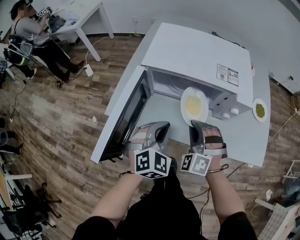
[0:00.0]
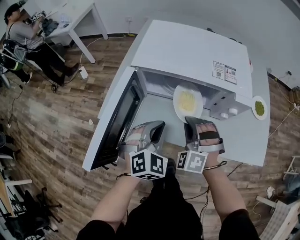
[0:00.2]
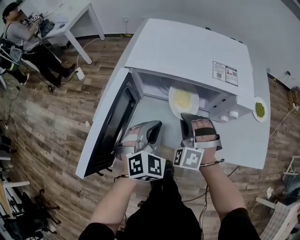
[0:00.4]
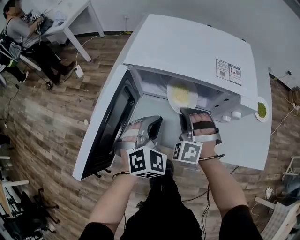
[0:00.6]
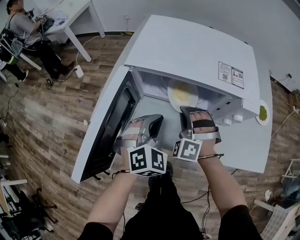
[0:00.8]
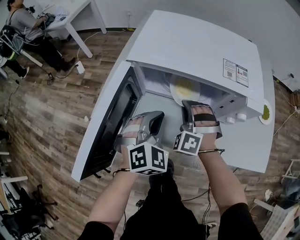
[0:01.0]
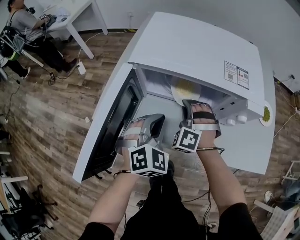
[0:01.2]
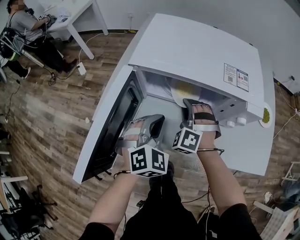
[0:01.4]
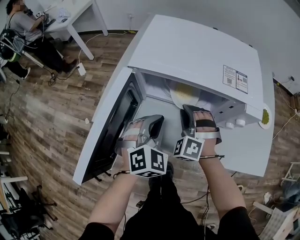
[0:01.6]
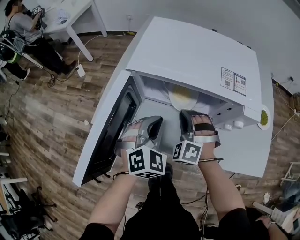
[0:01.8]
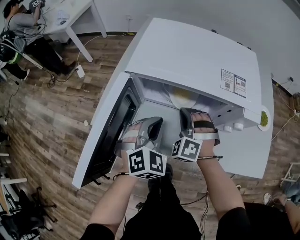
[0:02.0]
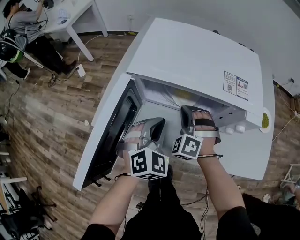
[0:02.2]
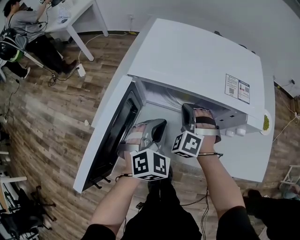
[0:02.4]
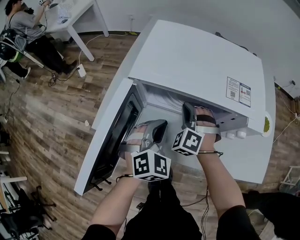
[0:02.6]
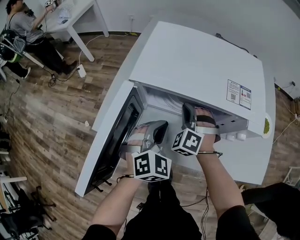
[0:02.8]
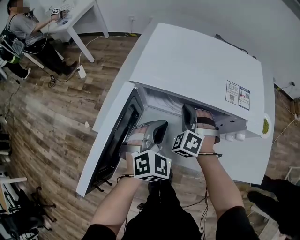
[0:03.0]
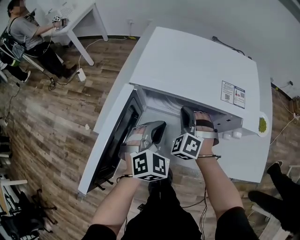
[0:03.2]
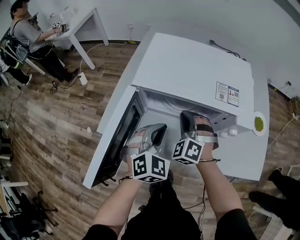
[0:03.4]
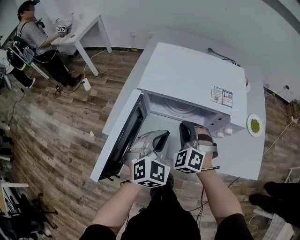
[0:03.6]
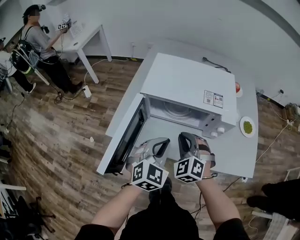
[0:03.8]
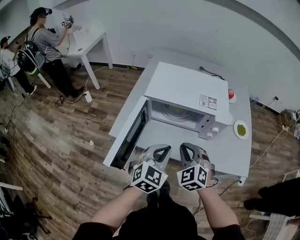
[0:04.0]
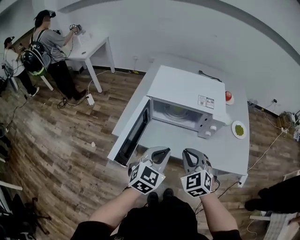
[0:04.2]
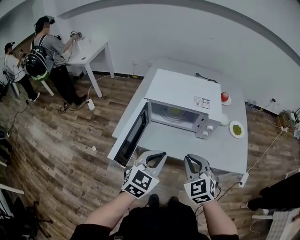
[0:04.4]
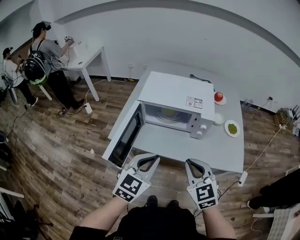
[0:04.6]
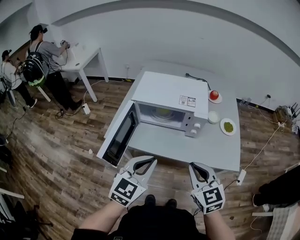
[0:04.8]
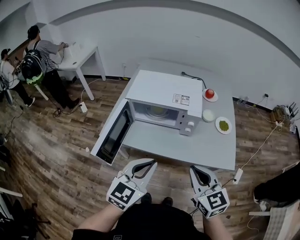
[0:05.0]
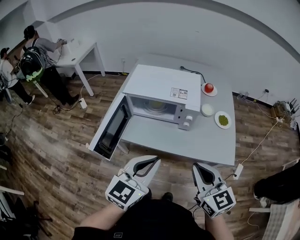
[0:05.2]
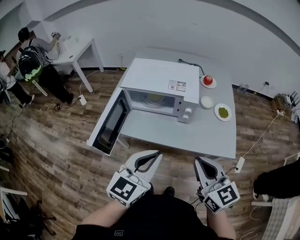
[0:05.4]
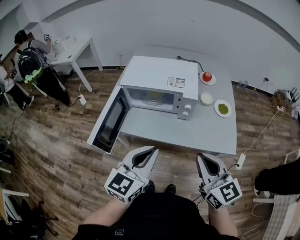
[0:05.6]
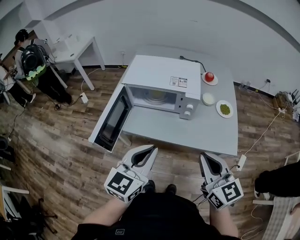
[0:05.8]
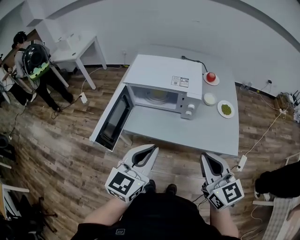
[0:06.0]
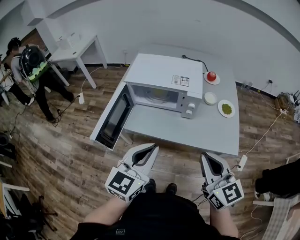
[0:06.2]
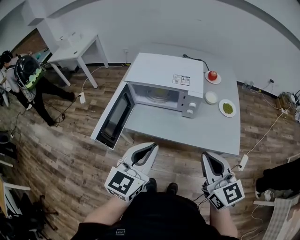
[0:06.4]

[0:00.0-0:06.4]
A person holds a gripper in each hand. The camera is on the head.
0:00.0 to 0:01.6: The left gripper goes approximately 5 cm forward, while the right gripper is displaced forward and downward by about 10 cm.
0:01.6 to 0:03.2: There are only small adjustments of the grippers.
0:03.2 to 0:04.8: The left gripper shifts approximately 30 cm backward and upward, and turns by roughly 30 degrees, while the right gripper moves backward, upward and to the right, roughly 40 cm, and rotates around the line of its fingers by some 50 degrees, clockwise from behind.
0:04.8 to 0:06.4: The right gripper shifts approximately 5 cm to the right. Meanwhile the left gripper moves approximately 5 cm.

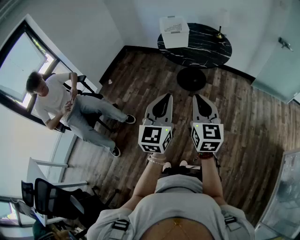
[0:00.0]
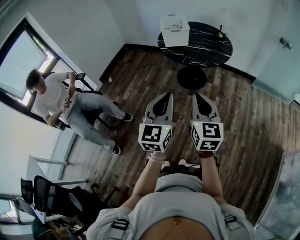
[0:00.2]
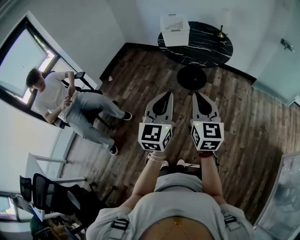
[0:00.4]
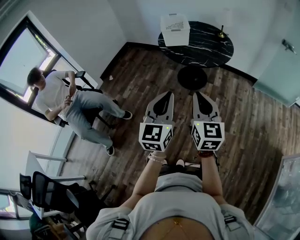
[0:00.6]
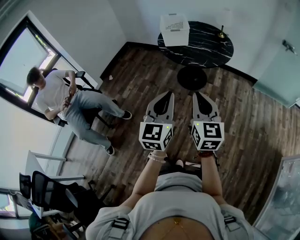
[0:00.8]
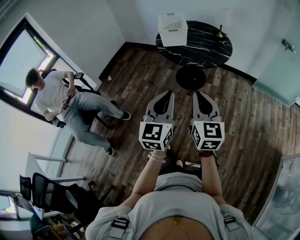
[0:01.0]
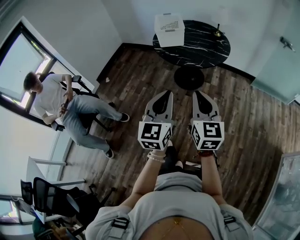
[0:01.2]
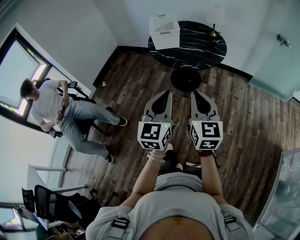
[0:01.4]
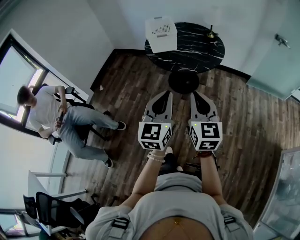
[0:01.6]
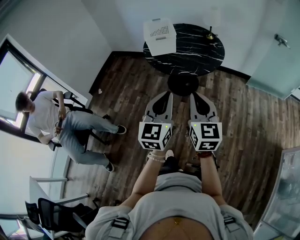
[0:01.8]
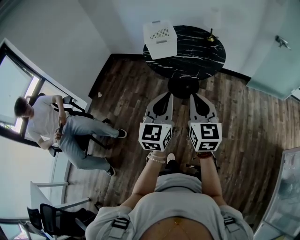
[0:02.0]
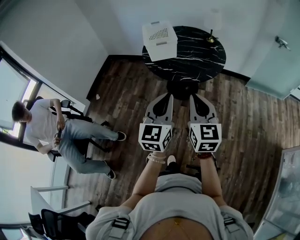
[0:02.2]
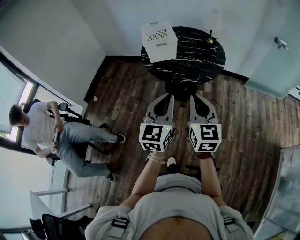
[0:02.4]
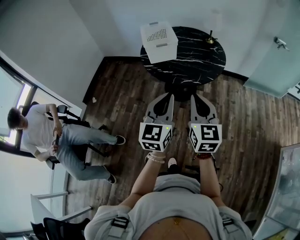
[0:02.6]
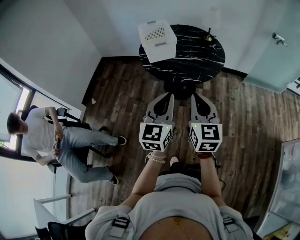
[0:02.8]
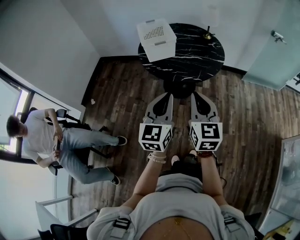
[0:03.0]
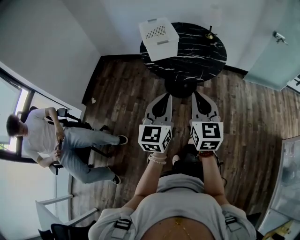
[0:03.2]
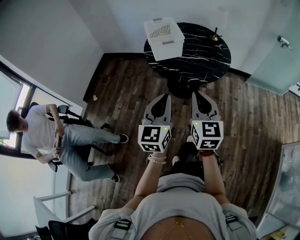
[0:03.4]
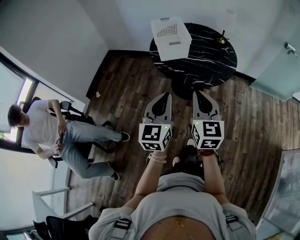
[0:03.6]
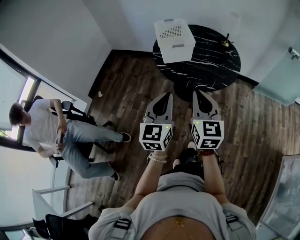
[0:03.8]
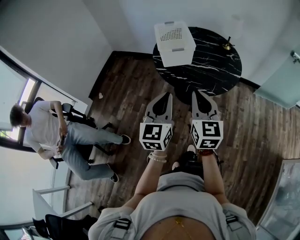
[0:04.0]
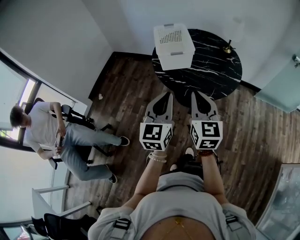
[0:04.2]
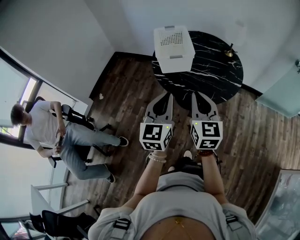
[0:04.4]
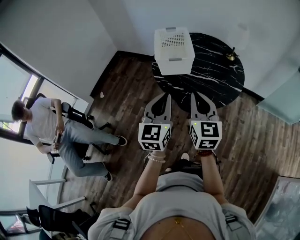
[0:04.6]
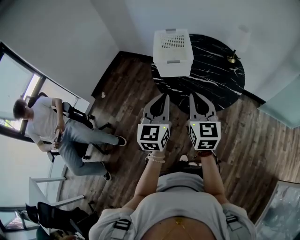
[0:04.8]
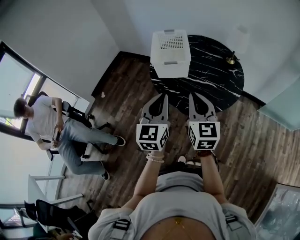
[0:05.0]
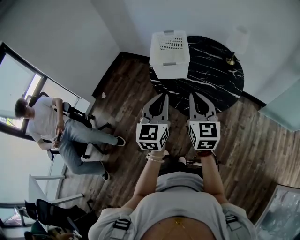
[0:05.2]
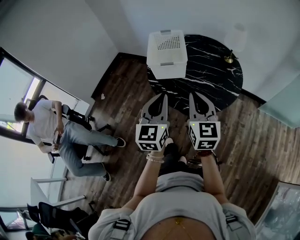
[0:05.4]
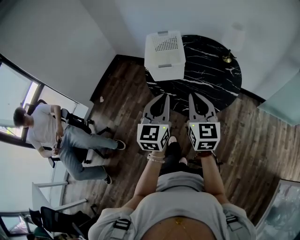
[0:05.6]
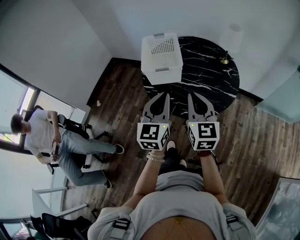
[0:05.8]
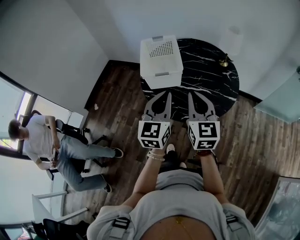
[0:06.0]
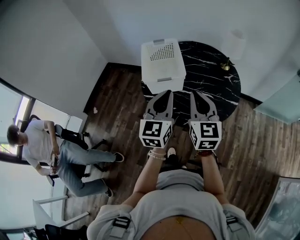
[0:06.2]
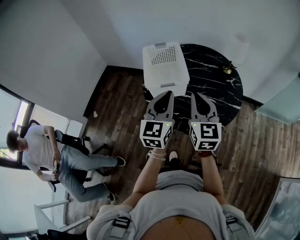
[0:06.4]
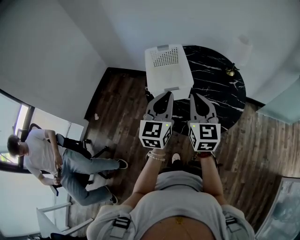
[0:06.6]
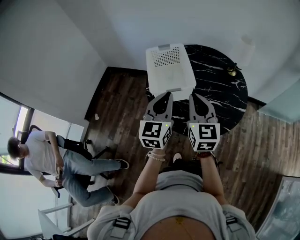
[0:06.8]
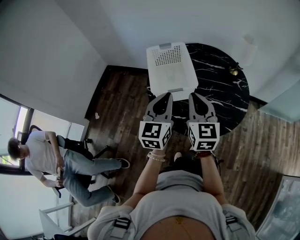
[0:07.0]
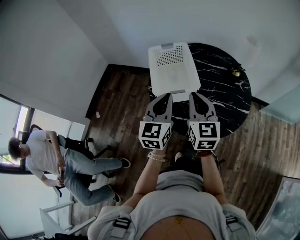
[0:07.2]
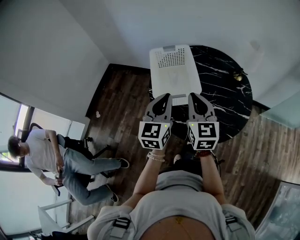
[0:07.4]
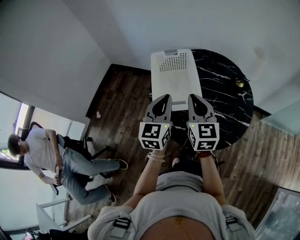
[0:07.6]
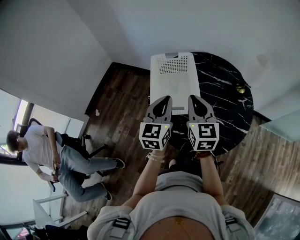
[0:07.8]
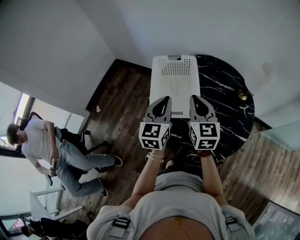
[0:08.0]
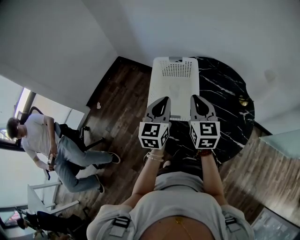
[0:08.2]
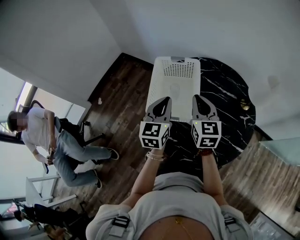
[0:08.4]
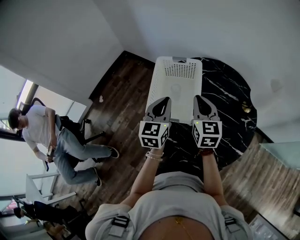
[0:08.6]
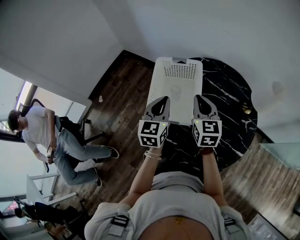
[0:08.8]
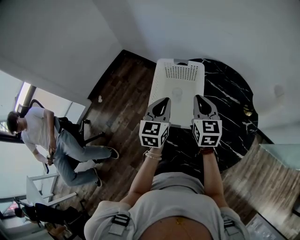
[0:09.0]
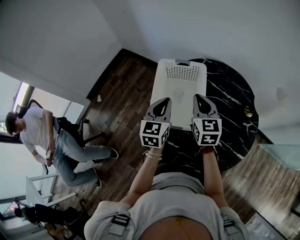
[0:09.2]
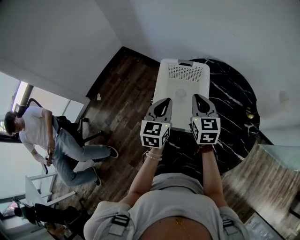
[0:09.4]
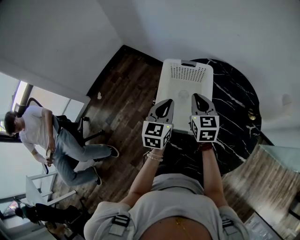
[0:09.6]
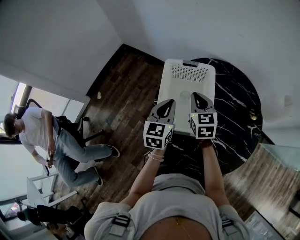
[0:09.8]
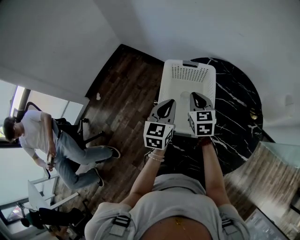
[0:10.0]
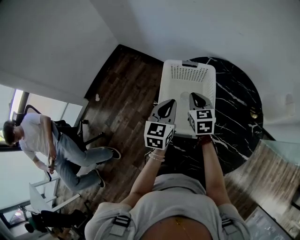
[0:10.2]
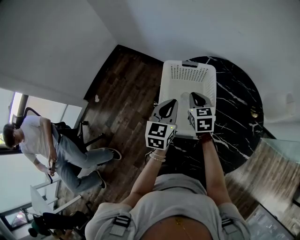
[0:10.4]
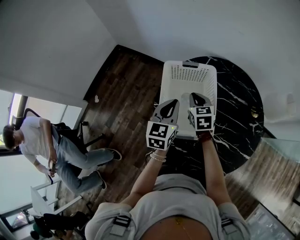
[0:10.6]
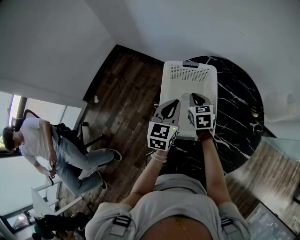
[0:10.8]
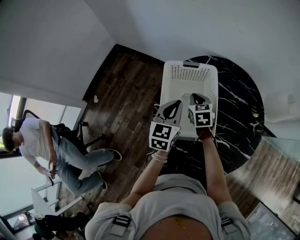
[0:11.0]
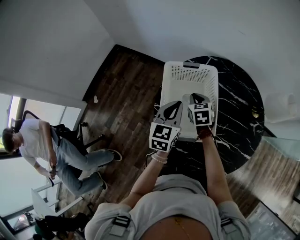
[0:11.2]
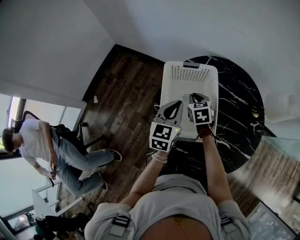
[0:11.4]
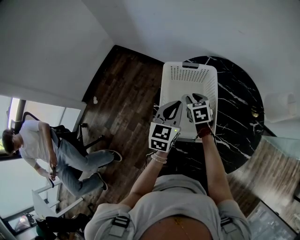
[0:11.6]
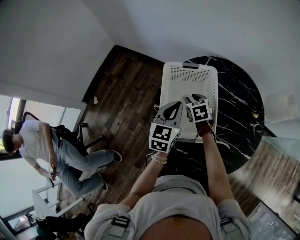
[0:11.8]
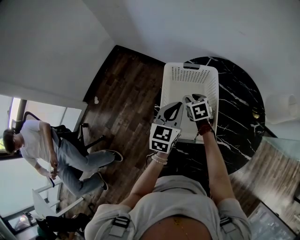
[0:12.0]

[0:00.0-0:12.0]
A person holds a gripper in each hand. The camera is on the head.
0:00.0 to 0:01.6: Both grippers travel together forward and to the right, roughly 15 cm.
0:01.6 to 0:03.0: Both grippers travel together forward and to the left, some 15 cm.
0:03.0 to 0:04.4: The two grippers go some 15 cm forward.
0:04.4 to 0:06.0: Both grippers travel together forward and to the right, approximately 15 cm.
0:06.0 to 0:07.6: The grippers both shift forward and to the left by some 20 cm.
0:07.6 to 0:09.0: The left gripper is displaced forward and downward by roughly 15 cm. Meanwhile the right gripper travels forward by roughly 15 cm.
0:09.0 to 0:10.4: The left gripper heads forward, covering roughly 5 cm. The right gripper goes about 15 cm downward, forward and to the left.
0:10.4 to 0:12.0: The right gripper is displaced downward by about 10 cm, and opens.

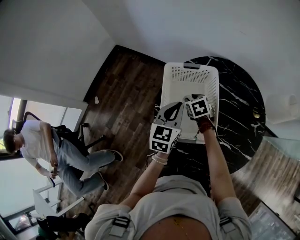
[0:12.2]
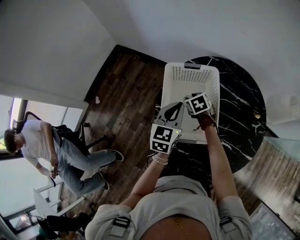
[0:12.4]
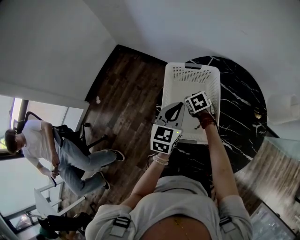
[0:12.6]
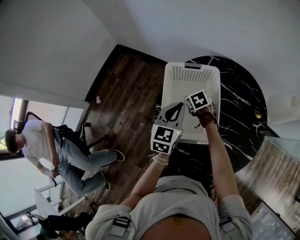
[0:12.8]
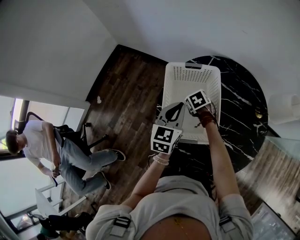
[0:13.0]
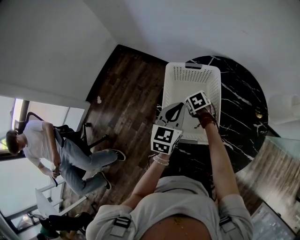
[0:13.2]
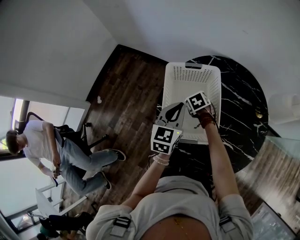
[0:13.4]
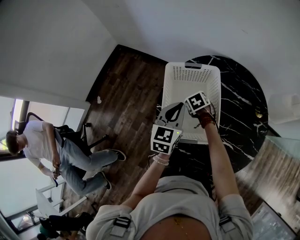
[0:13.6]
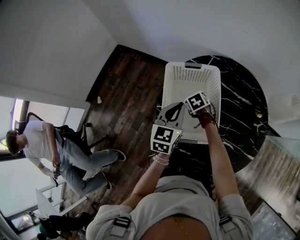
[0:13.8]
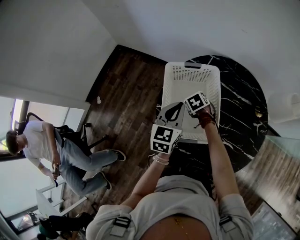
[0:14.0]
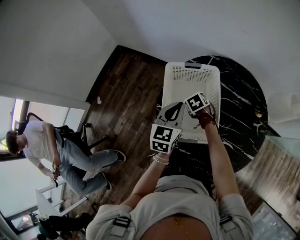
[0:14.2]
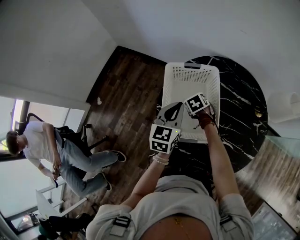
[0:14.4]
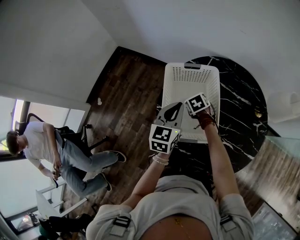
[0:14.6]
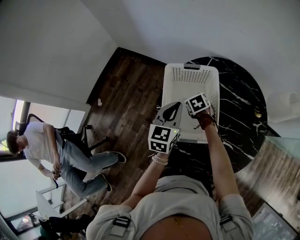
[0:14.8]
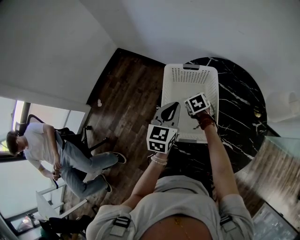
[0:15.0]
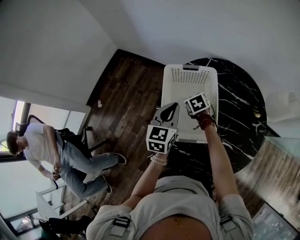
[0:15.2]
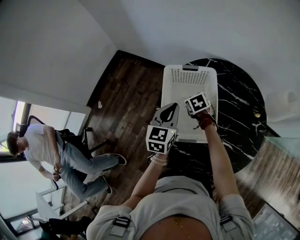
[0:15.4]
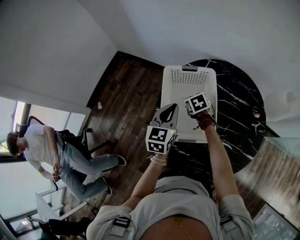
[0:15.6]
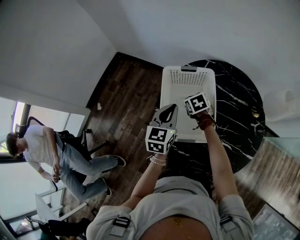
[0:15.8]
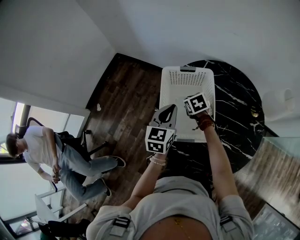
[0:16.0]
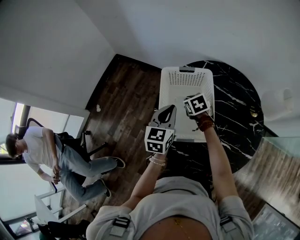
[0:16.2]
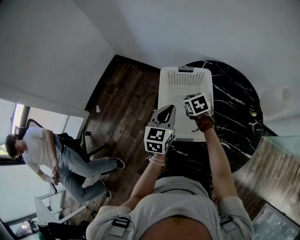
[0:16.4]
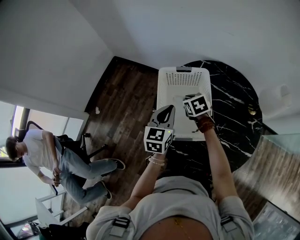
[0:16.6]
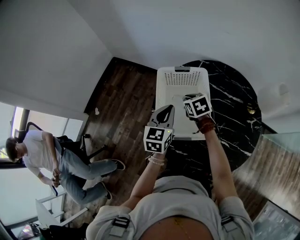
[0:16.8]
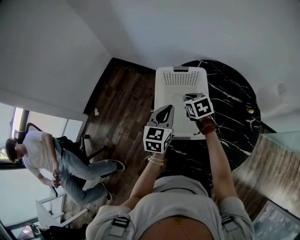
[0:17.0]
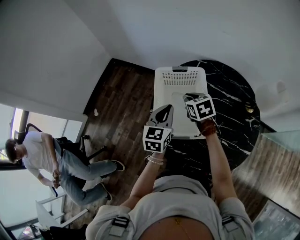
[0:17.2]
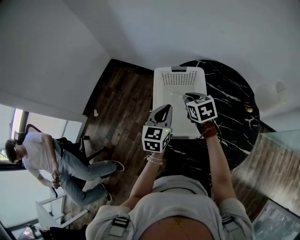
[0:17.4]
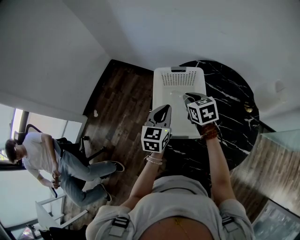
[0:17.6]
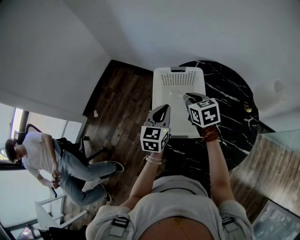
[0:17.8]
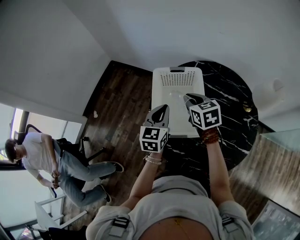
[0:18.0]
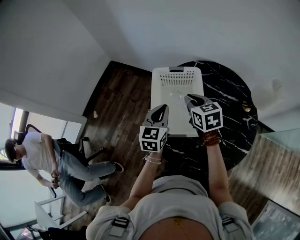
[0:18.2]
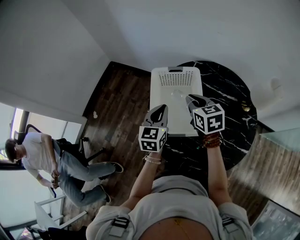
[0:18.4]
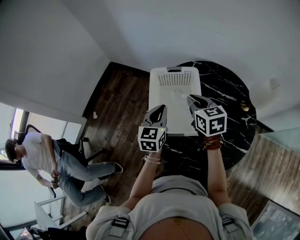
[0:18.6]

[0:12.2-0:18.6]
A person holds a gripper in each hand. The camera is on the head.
0:12.2 to 0:15.4: There are only small adjustments of the grippers.
0:15.4 to 0:17.0: The right gripper travels upward by approximately 10 cm.
0:17.0 to 0:18.6: The right gripper moves upward and backward, about 10 cm, and changes its angle by some 20 degrees.
